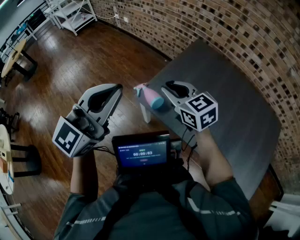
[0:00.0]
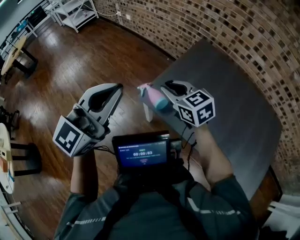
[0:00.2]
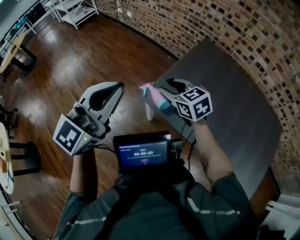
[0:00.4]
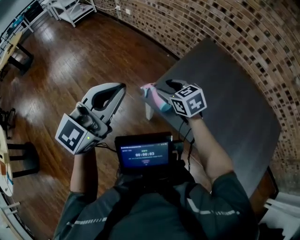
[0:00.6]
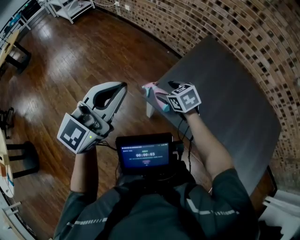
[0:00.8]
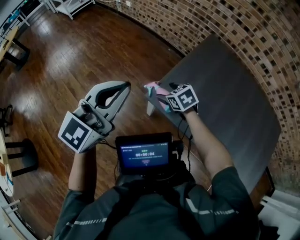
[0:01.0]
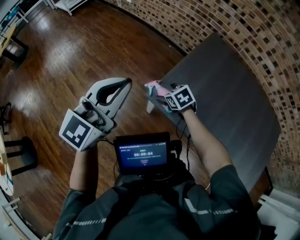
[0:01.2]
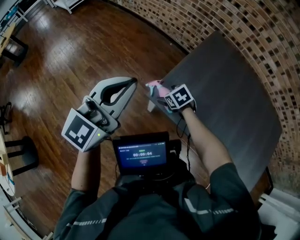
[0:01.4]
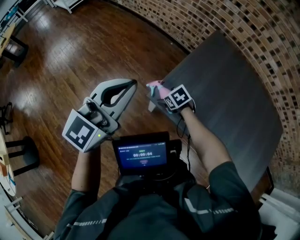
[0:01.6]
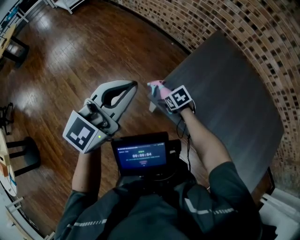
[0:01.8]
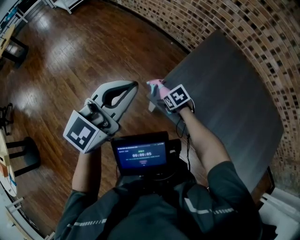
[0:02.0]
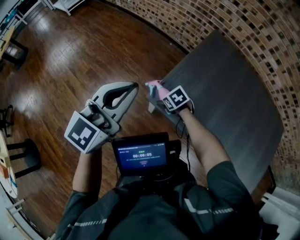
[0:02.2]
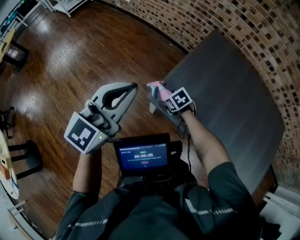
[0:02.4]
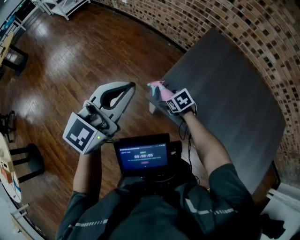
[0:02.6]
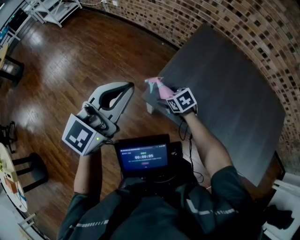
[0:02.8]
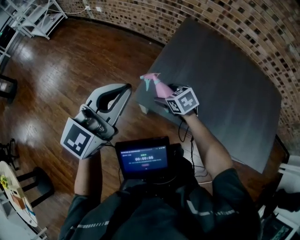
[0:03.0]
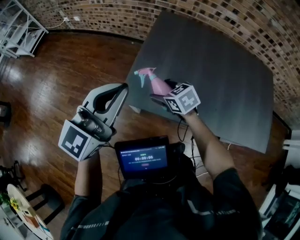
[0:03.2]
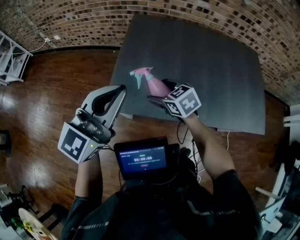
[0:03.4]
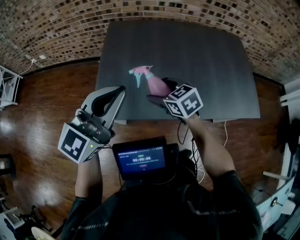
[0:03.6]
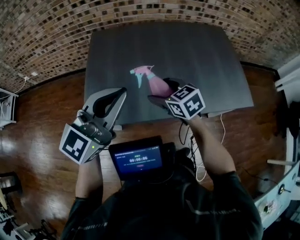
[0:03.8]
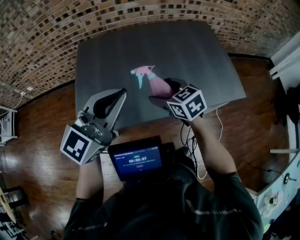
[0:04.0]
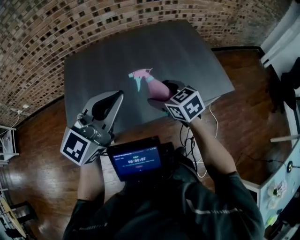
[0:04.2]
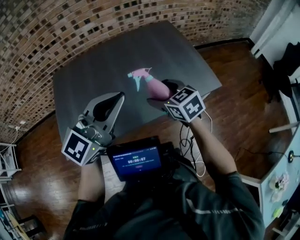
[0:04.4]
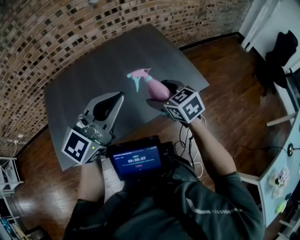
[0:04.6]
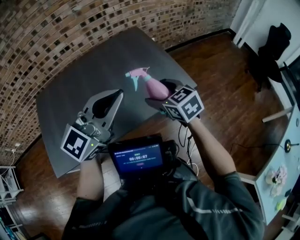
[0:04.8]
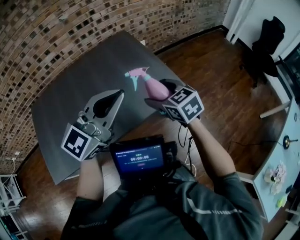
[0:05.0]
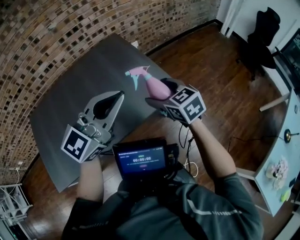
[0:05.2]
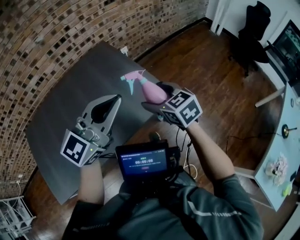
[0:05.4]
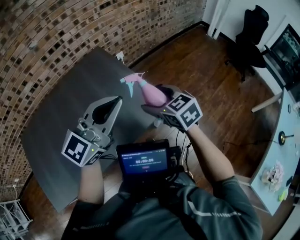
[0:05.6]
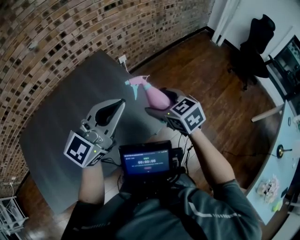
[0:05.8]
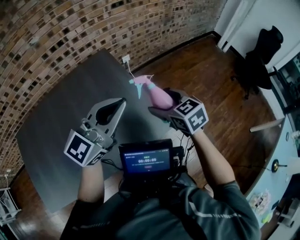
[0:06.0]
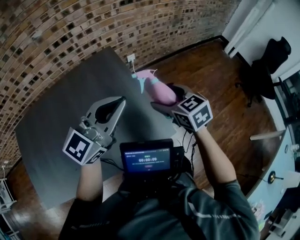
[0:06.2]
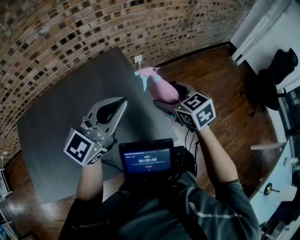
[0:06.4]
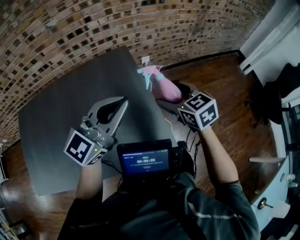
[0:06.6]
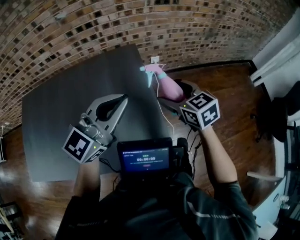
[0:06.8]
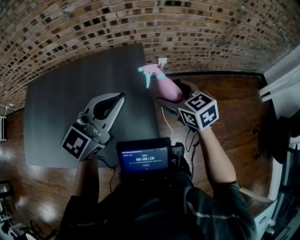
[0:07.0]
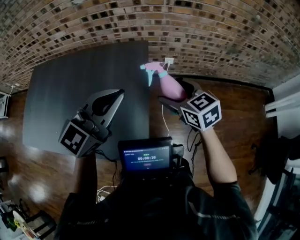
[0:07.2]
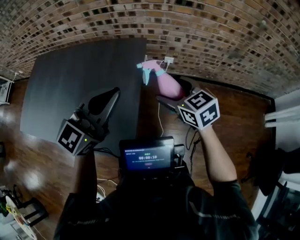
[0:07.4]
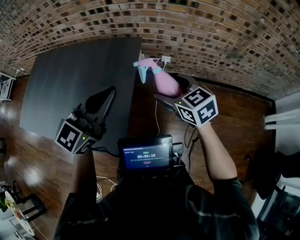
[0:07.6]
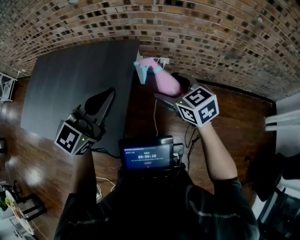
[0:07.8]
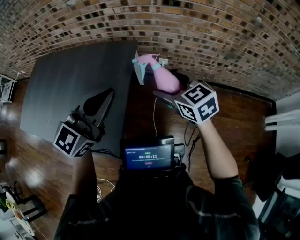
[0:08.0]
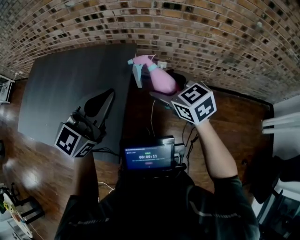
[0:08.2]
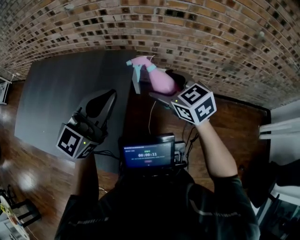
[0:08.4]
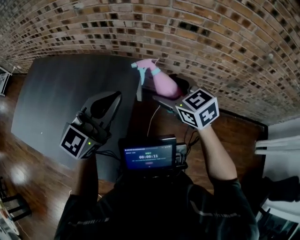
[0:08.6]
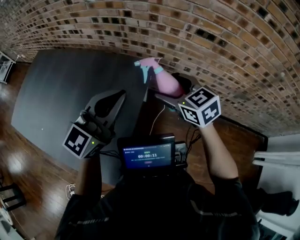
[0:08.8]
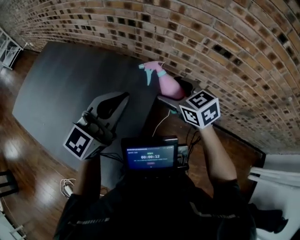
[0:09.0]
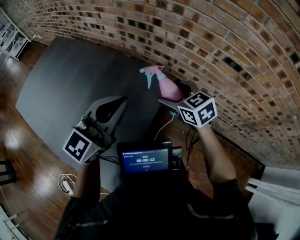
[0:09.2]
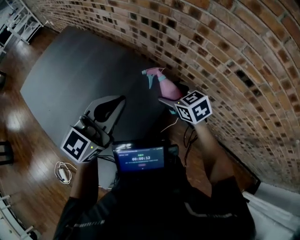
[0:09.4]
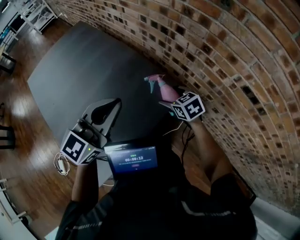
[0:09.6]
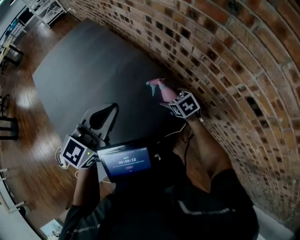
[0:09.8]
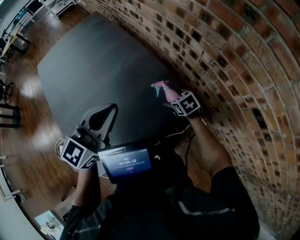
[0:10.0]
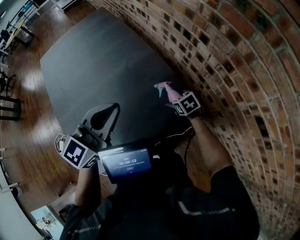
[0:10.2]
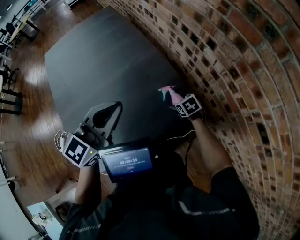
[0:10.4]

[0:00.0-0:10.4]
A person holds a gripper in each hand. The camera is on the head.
0:00.0 to 0:01.4: The left gripper travels forward, downward and to the left by approximately 15 cm, while the right gripper travels downward by about 30 cm, tilts its fingers some 40 degrees downward, and opens up.
0:01.4 to 0:03.0: The right gripper is displaced upward by roughly 5 cm, while the left gripper shifts roughly 5 cm to the right.
0:03.0 to 0:04.4: The two grippers travel together, approximately 50 cm. The left gripper rotates roughly 50 degrees, while the right gripper turns by about 50 degrees.
0:04.4 to 0:06.0: The pair of grippers is taken forward and to the right, about 40 cm.
0:06.0 to 0:07.4: The right gripper ends up about 25 cm from where it was, and swivels some 40 degrees; the left gripper ends up roughly 20 cm from where it was, and swivels some 40 degrees.
0:07.4 to 0:09.0: The two grippers go approximately 25 cm forward.
0:09.0 to 0:10.4: The right gripper is displaced downward by about 25 cm, and tilts its fingers roughly 30 degrees downward. Meanwhile the left gripper moves roughly 10 cm, and turns by roughly 40 degrees.

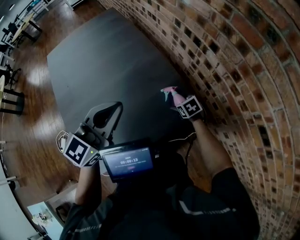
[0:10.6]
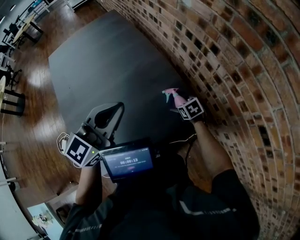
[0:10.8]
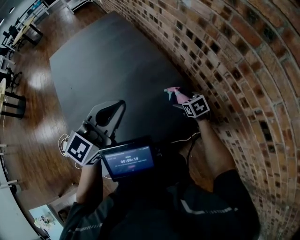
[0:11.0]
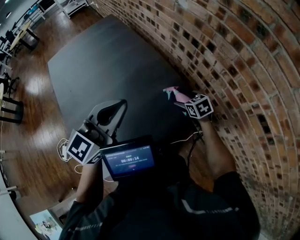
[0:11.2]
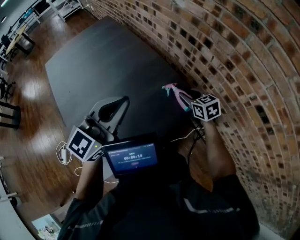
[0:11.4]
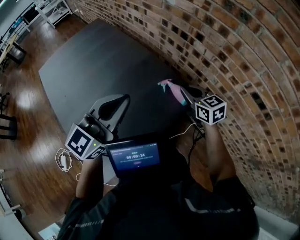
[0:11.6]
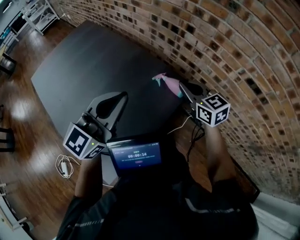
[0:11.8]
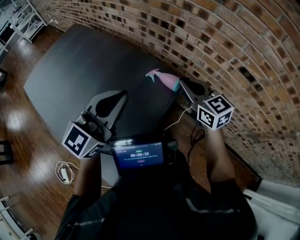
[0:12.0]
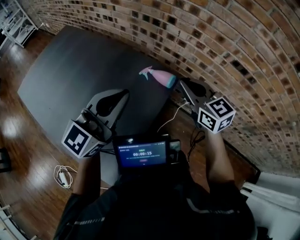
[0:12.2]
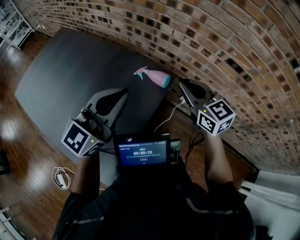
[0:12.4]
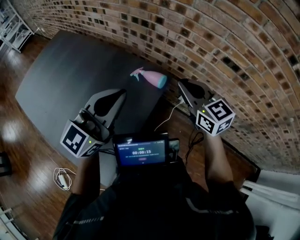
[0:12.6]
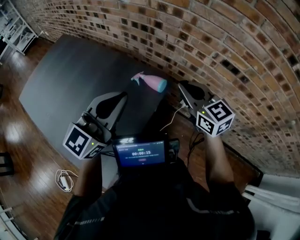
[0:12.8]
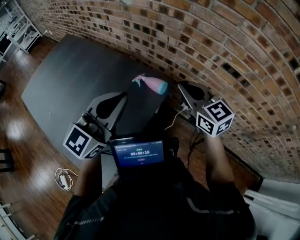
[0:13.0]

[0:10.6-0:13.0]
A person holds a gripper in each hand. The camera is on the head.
0:10.6 to 0:11.8: The right gripper shifts about 30 cm upward, tilts its fingers some 40 degrees upward, and closes up; the left gripper moves backward, roughly 5 cm, and rotates approximately 20 degrees.
0:11.8 to 0:13.0: The left gripper heads to the right, covering roughly 10 cm. Meanwhile the right gripper heads to the right, upward and backward, covering roughly 10 cm.

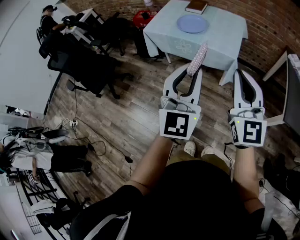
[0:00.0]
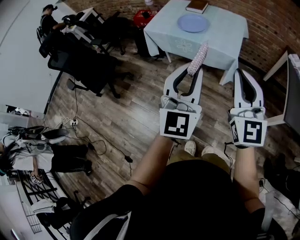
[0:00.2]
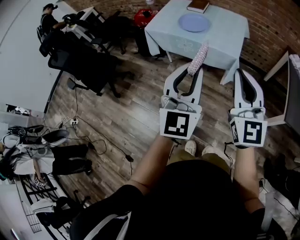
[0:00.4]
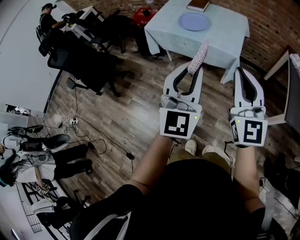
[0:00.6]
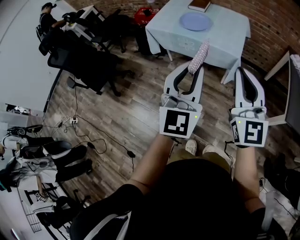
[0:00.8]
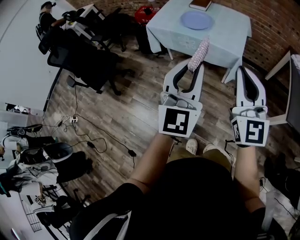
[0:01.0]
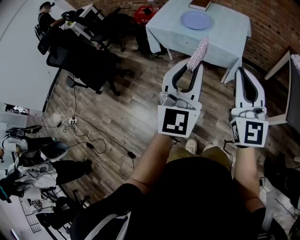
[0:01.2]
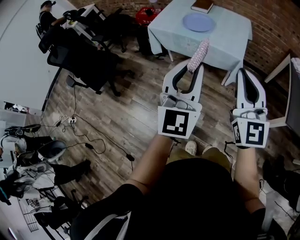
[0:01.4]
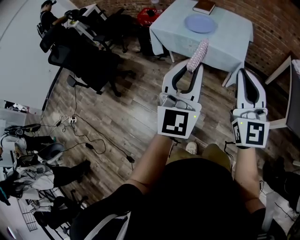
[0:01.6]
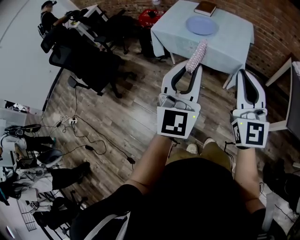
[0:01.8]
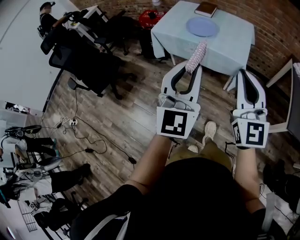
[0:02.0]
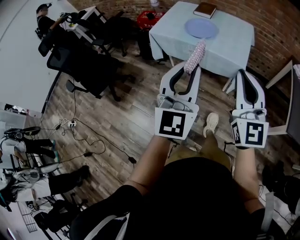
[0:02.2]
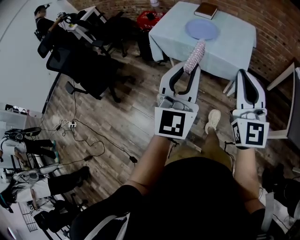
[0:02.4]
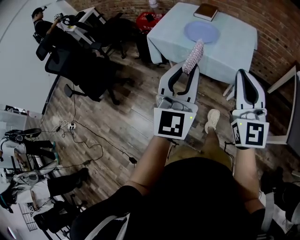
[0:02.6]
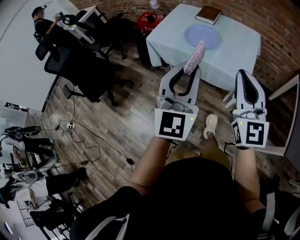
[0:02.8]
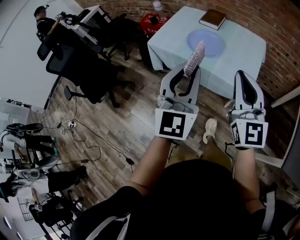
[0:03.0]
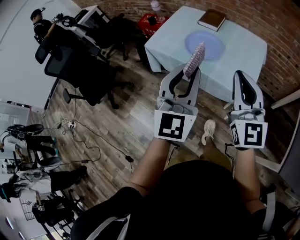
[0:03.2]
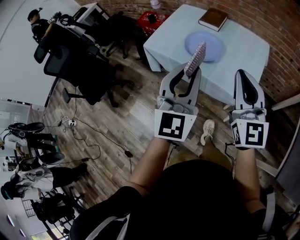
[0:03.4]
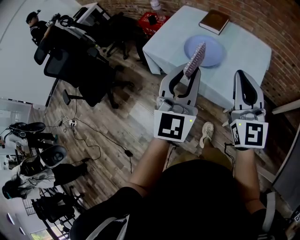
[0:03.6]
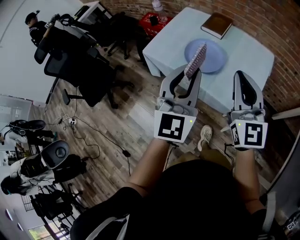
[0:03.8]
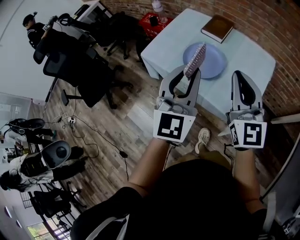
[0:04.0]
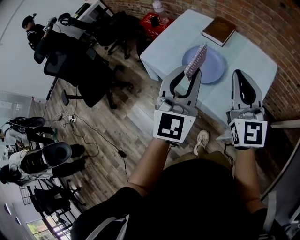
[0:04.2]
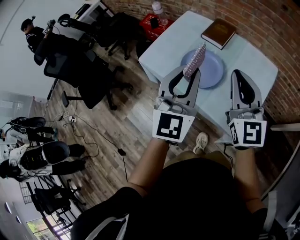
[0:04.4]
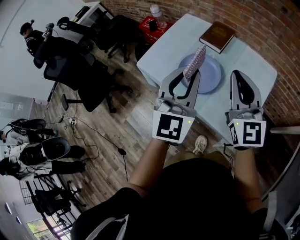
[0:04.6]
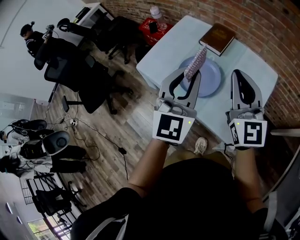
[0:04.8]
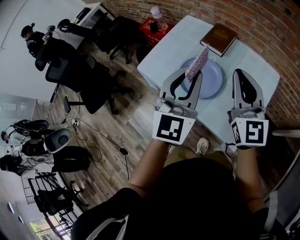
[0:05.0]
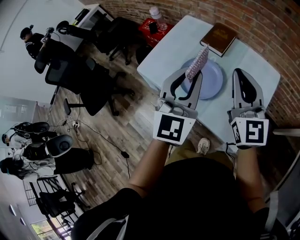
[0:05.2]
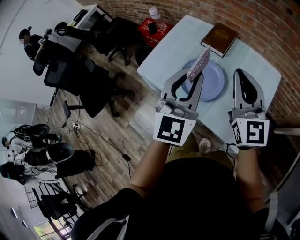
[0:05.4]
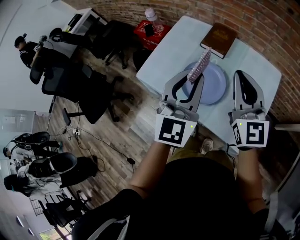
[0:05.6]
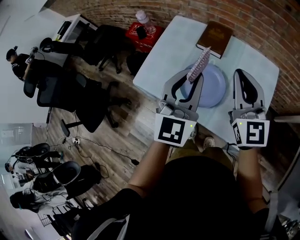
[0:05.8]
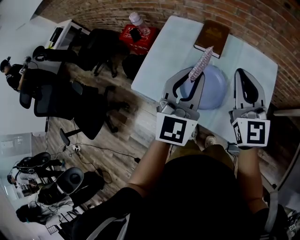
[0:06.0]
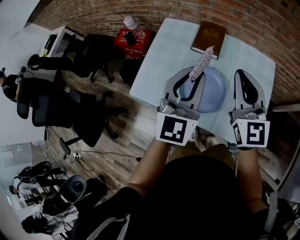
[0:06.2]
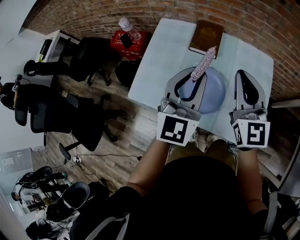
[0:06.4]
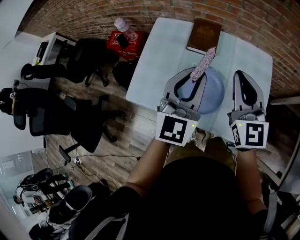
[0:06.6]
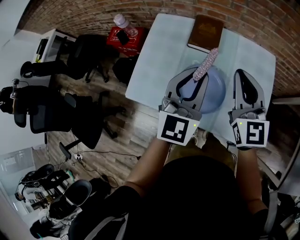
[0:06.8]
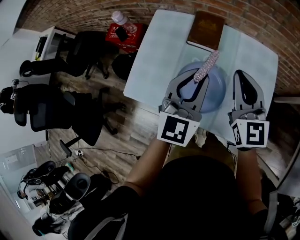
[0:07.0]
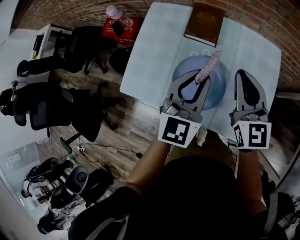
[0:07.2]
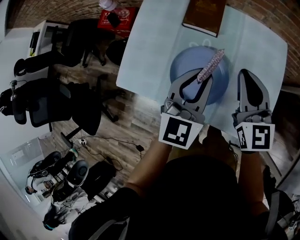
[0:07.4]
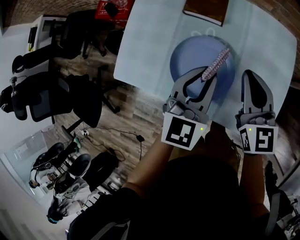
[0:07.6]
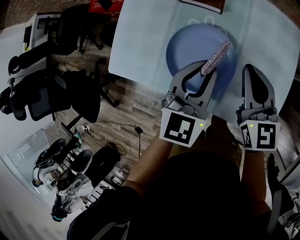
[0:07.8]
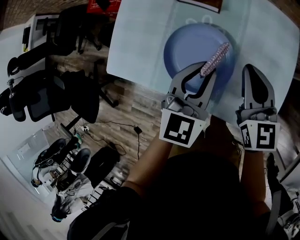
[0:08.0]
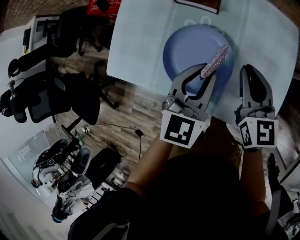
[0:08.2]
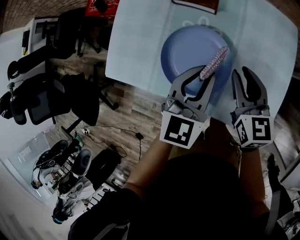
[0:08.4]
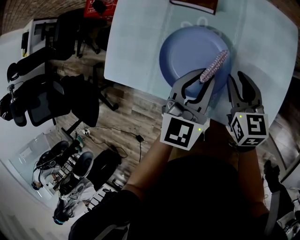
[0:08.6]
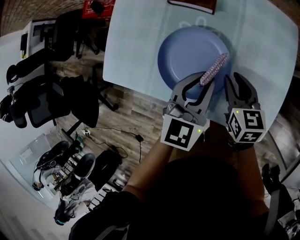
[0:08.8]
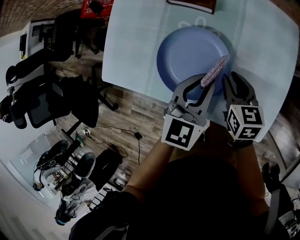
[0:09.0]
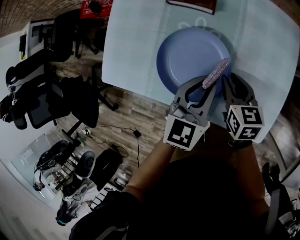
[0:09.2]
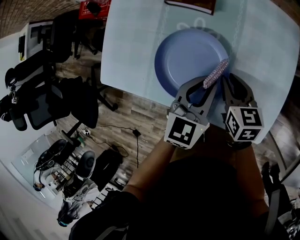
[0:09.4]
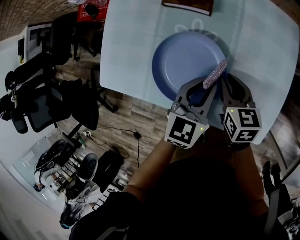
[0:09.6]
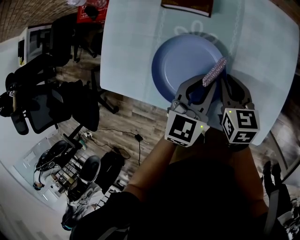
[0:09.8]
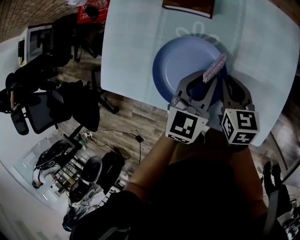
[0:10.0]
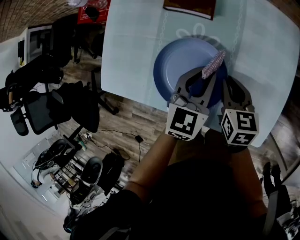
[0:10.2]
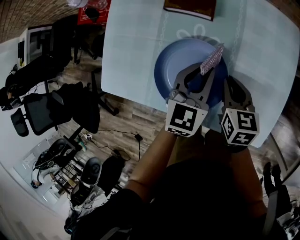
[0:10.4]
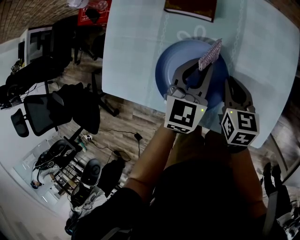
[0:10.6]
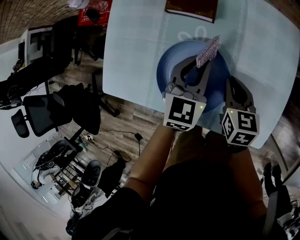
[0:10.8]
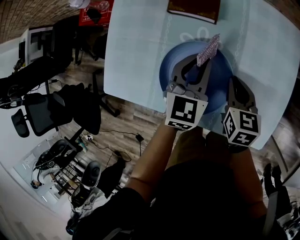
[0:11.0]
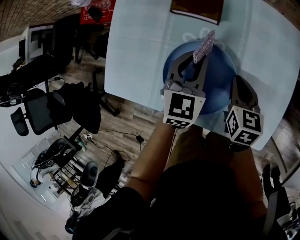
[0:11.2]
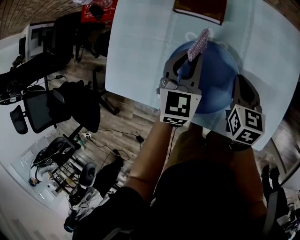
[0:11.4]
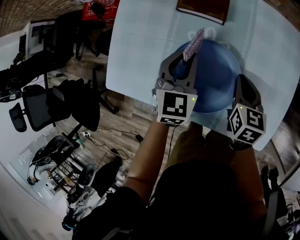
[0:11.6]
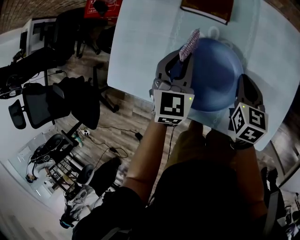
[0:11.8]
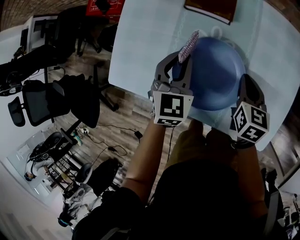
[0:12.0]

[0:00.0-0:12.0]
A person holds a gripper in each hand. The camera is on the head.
0:00.0 to 0:01.6: The grippers both shift to the left by approximately 5 cm.
0:01.6 to 0:03.0: The grippers both shift forward by approximately 30 cm.
0:03.0 to 0:04.4: Both grippers travel together forward, about 30 cm.
0:04.4 to 0:06.0: Both grippers travel together forward, roughly 15 cm.
0:06.0 to 0:07.6: Both grippers travel together downward, about 20 cm. The right gripper swivels about 20 degrees; the left gripper changes its angle by about 20 degrees.
0:07.6 to 0:09.0: The right gripper moves downward, approximately 15 cm, turns by some 30 degrees, and opens its fingers; the left gripper moves downward, roughly 10 cm.
0:09.0 to 0:10.4: The left gripper is displaced forward by some 5 cm.
0:10.4 to 0:12.0: The left gripper goes some 10 cm to the left.
